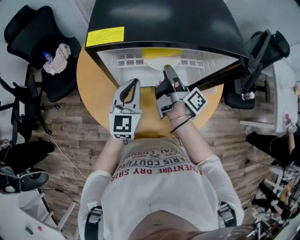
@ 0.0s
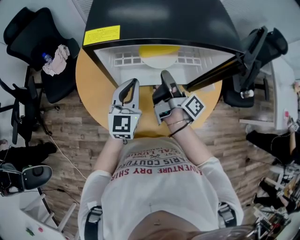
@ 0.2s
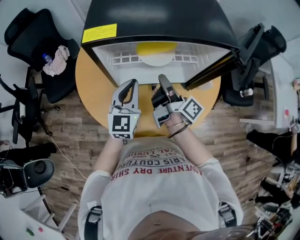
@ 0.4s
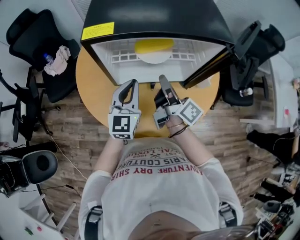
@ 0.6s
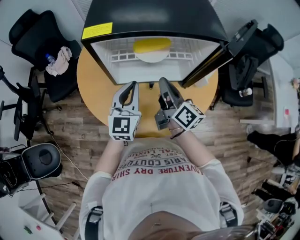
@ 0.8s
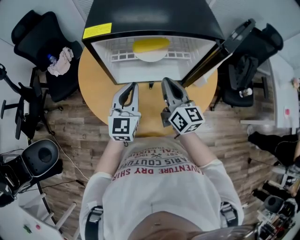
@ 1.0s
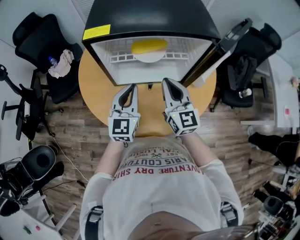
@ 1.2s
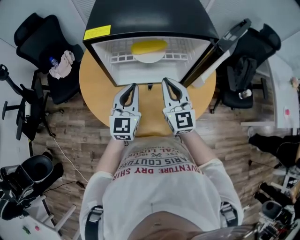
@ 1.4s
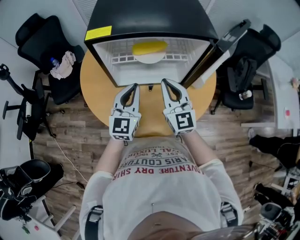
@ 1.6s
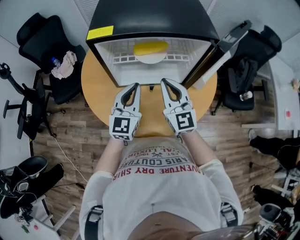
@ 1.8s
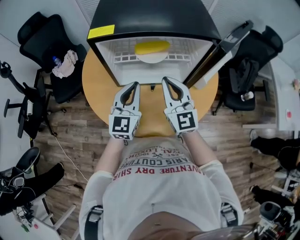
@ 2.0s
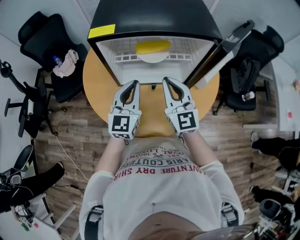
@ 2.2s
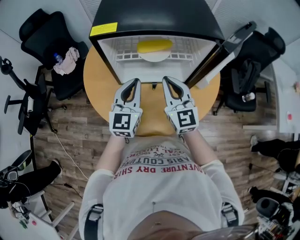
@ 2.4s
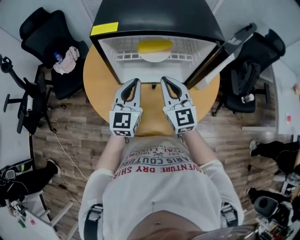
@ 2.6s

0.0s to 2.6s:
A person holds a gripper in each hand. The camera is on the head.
0.0s to 1.2s: The left gripper ends up some 10 cm from where it was.

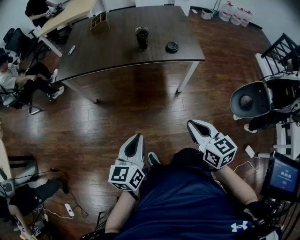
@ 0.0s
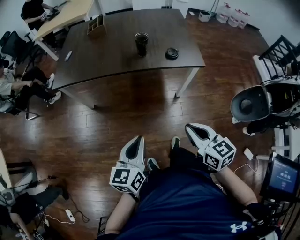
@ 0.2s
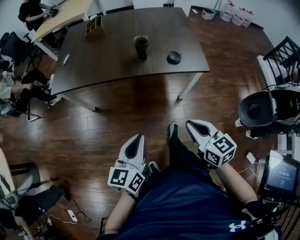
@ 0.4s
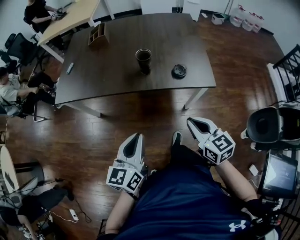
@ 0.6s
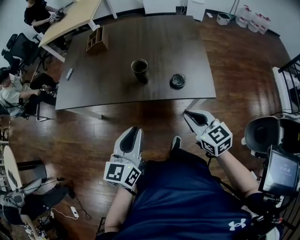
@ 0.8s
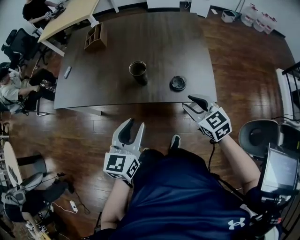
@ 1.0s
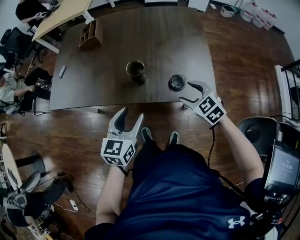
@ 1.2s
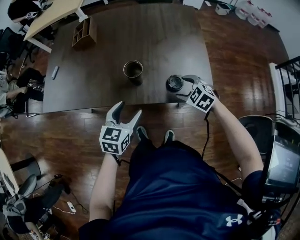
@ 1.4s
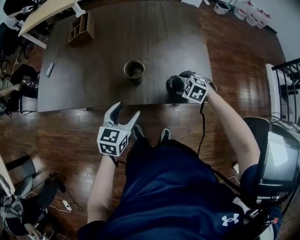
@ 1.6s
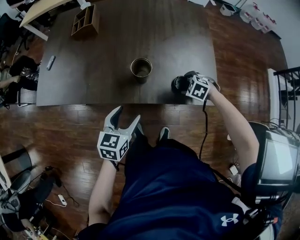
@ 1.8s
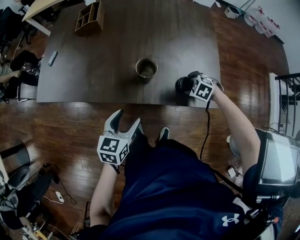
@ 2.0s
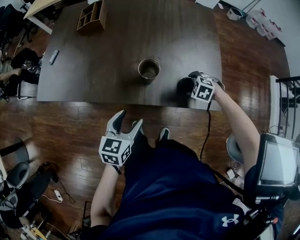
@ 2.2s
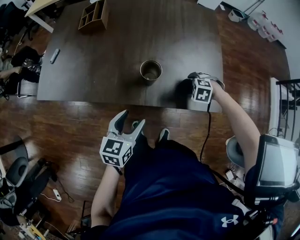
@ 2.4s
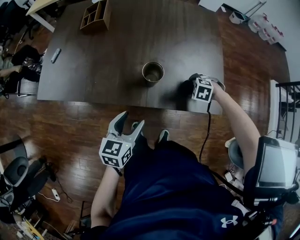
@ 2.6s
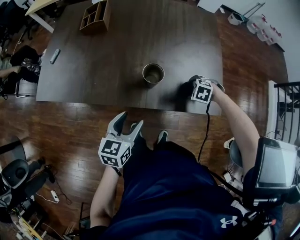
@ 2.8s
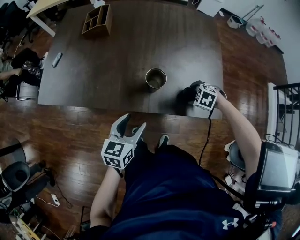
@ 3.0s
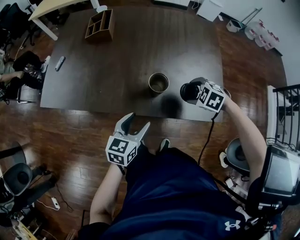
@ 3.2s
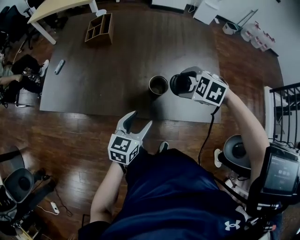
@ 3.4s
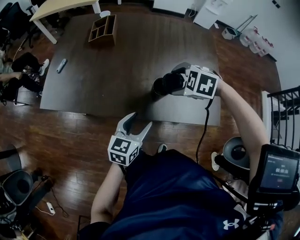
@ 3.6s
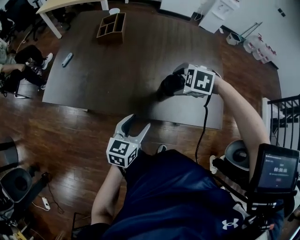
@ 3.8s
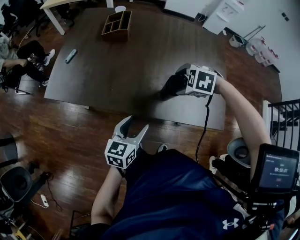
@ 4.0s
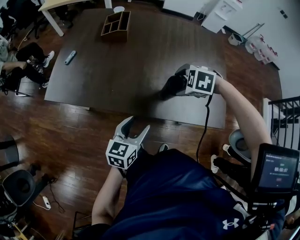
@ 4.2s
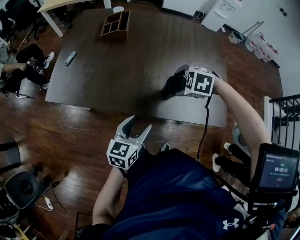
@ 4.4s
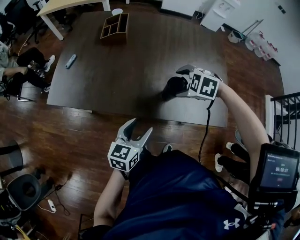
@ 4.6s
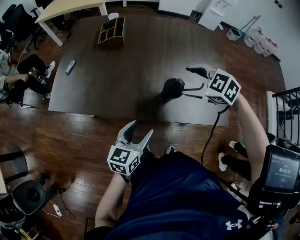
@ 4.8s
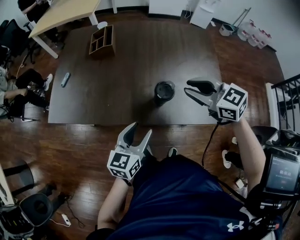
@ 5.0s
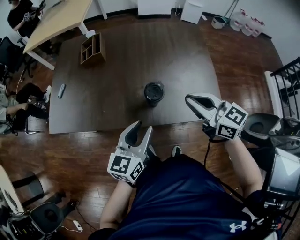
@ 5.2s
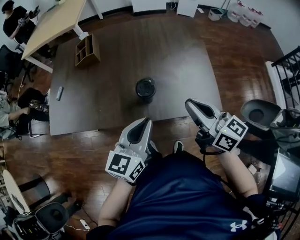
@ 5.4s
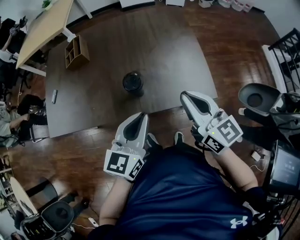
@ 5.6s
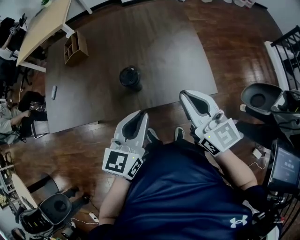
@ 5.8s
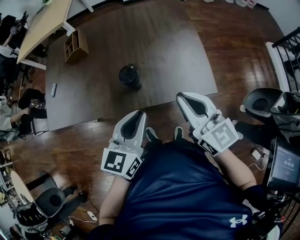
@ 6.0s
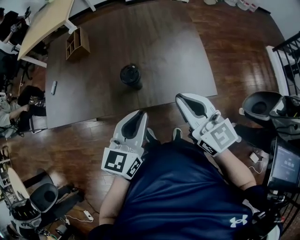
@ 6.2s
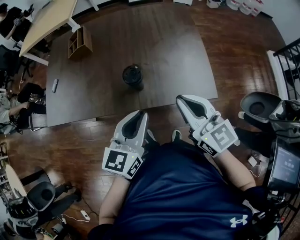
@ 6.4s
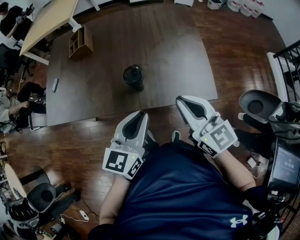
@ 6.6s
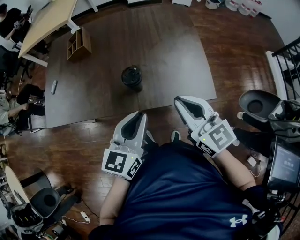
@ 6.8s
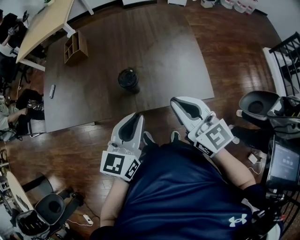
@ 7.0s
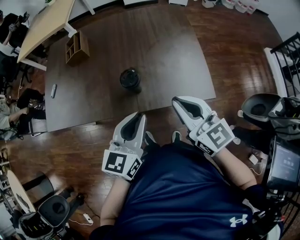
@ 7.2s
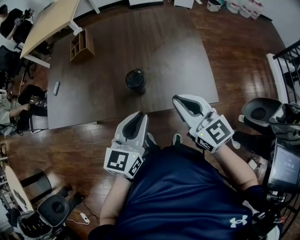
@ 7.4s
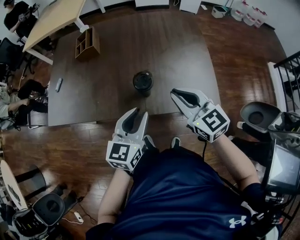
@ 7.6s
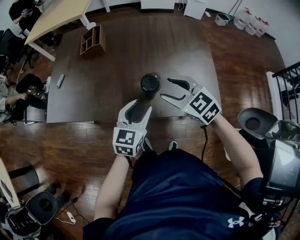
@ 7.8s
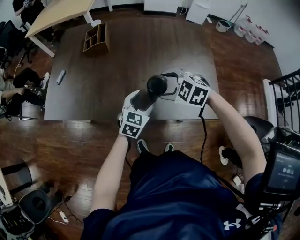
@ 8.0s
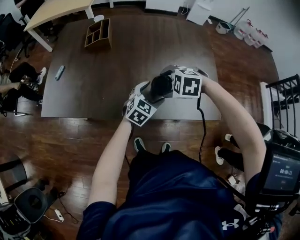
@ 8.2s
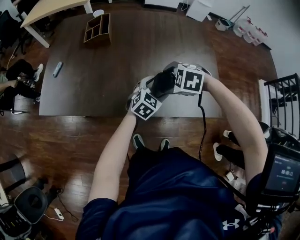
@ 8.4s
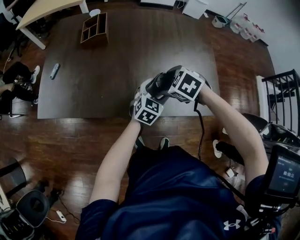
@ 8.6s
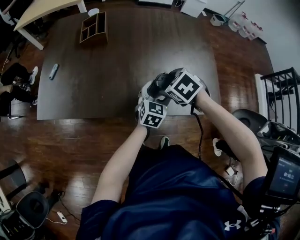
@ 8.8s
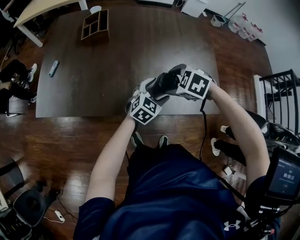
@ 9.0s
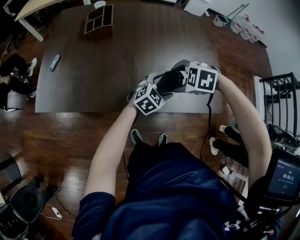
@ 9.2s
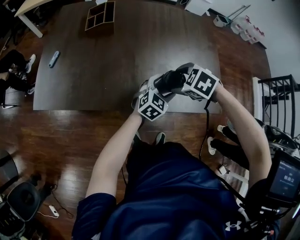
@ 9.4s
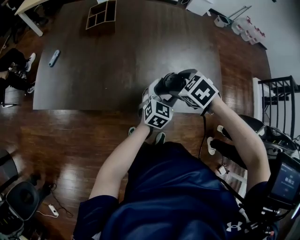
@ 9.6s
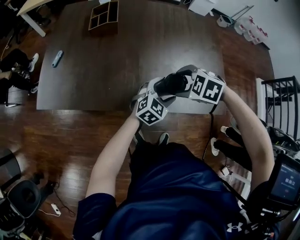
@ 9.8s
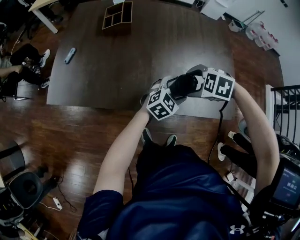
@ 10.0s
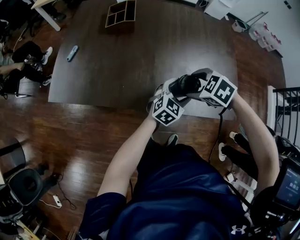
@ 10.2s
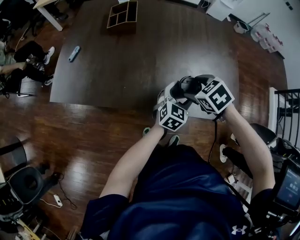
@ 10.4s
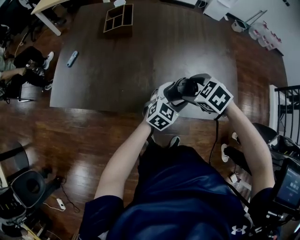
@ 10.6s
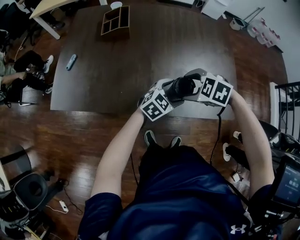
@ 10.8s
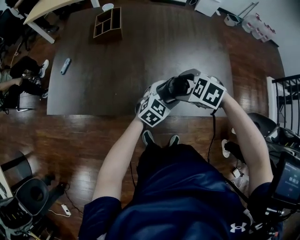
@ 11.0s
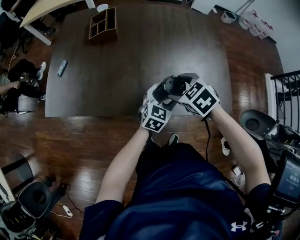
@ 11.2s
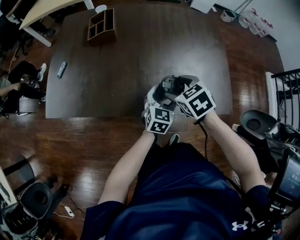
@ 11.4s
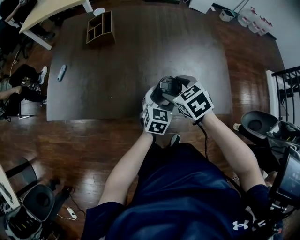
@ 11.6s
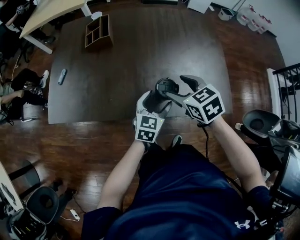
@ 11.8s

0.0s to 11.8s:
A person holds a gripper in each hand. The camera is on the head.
0.0s to 1.4s: The pair of grippers is taken forward, roughly 50 cm. The right gripper points its fingers about 30 degrees further downward, and opens; the left gripper rotates some 20 degrees, and opens its fingers.
1.4s to 3.0s: The right gripper shifts about 5 cm downward, and changes its angle by roughly 30 degrees. Meanwhile the left gripper shifts by roughly 5 cm.
3.0s to 4.4s: The right gripper ends up about 25 cm from where it was, while the left gripper ends up about 5 cm from where it was.
4.4s to 6.0s: The left gripper changes place by some 20 cm, and closes its fingers. Meanwhile the right gripper changes place by approximately 25 cm, points its fingers approximately 70 degrees further upward, and closes up.
6.0s to 7.4s: The grippers stay close to where they were, moving slightly.
7.4s to 8.8s: The left gripper travels downward and forward by about 25 cm, and opens; the right gripper travels downward, forward and to the left by approximately 25 cm, angles its fingers downward, by approximately 60 degrees, and opens.
10.4s to 11.8s: The right gripper swivels some 30 degrees.

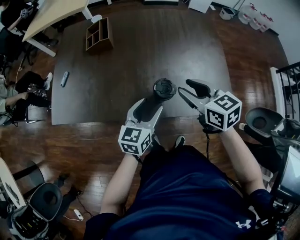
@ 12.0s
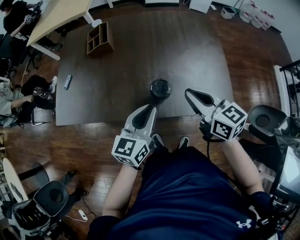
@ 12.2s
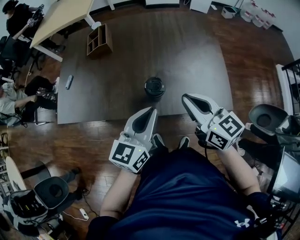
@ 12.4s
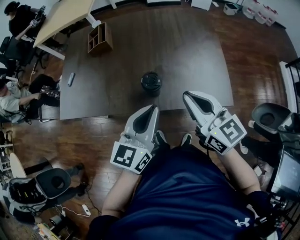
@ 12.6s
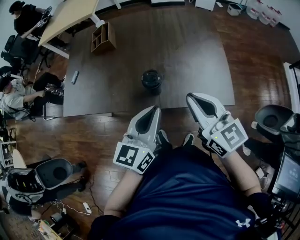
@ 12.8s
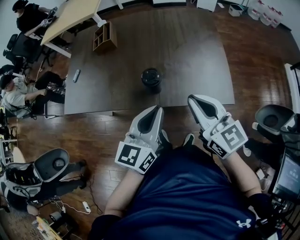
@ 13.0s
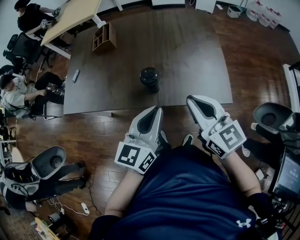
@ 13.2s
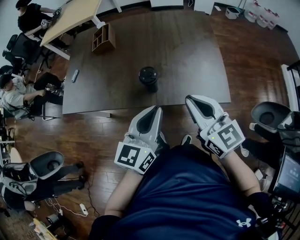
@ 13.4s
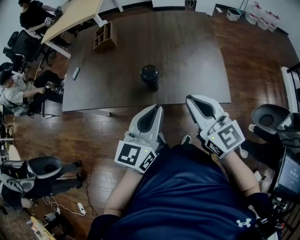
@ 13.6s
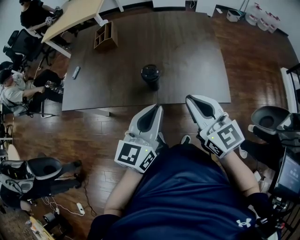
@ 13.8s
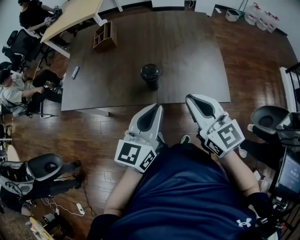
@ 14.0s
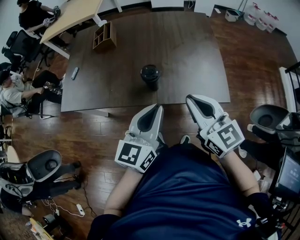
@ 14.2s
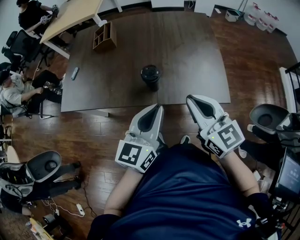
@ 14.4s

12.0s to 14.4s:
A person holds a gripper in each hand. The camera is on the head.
12.0s to 13.2s: The left gripper moves upward, backward and to the right, roughly 20 cm, and closes its fingers. The right gripper travels backward, upward and to the right by some 20 cm, rotates roughly 20 degrees, and closes.
13.2s to 14.4s: The grippers move only a little.

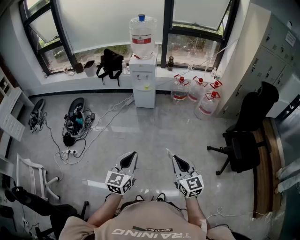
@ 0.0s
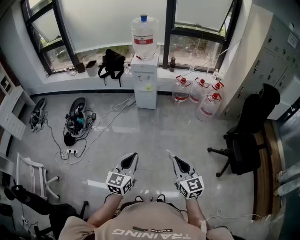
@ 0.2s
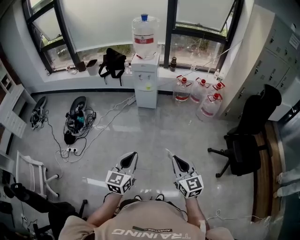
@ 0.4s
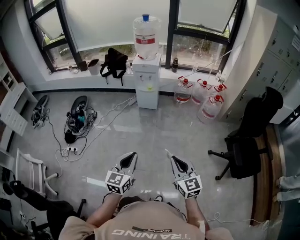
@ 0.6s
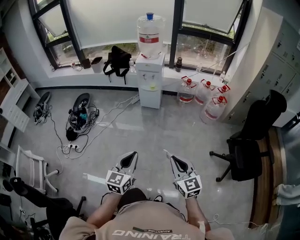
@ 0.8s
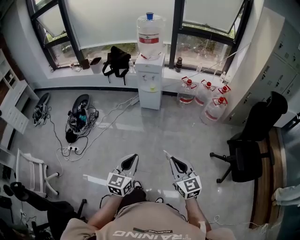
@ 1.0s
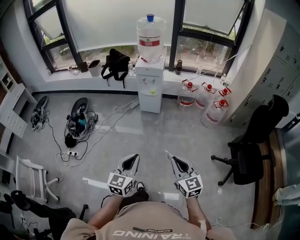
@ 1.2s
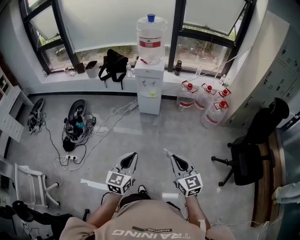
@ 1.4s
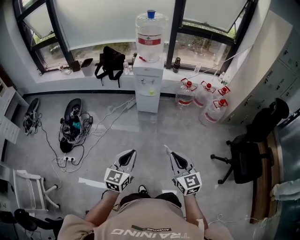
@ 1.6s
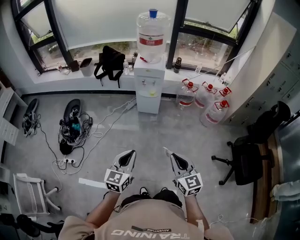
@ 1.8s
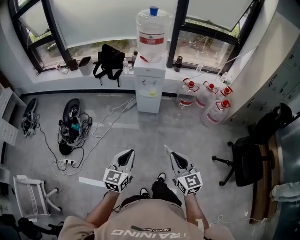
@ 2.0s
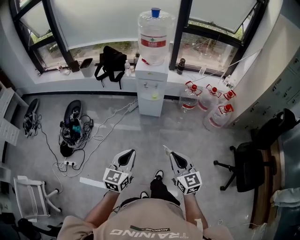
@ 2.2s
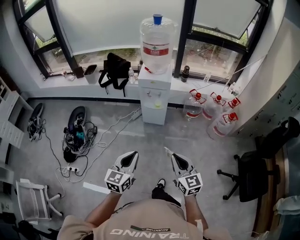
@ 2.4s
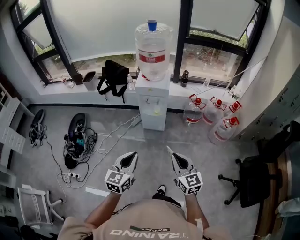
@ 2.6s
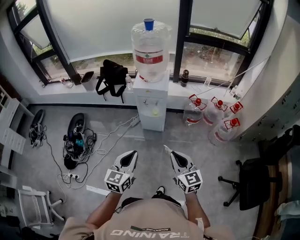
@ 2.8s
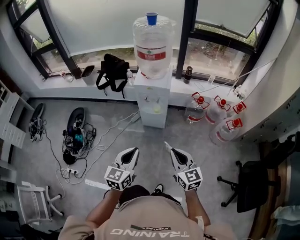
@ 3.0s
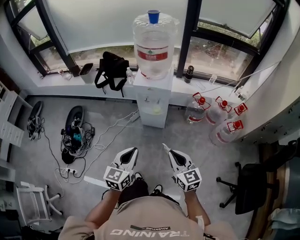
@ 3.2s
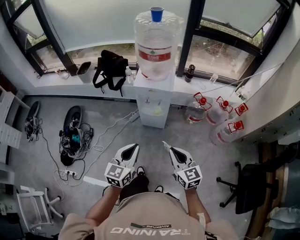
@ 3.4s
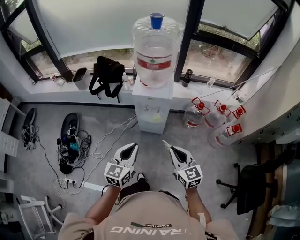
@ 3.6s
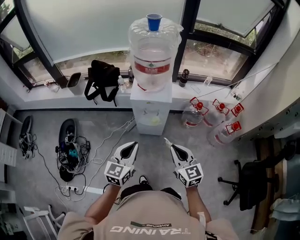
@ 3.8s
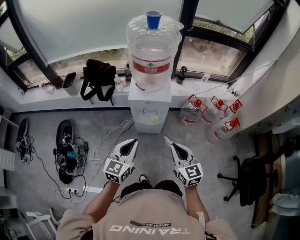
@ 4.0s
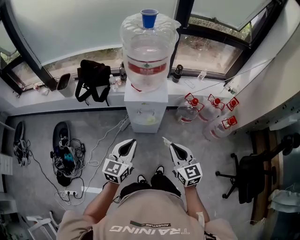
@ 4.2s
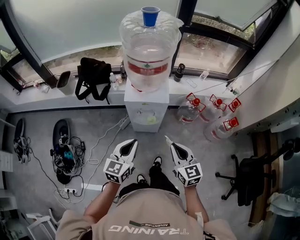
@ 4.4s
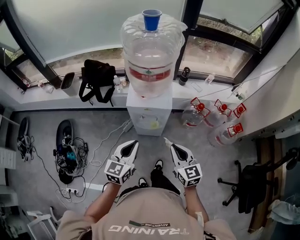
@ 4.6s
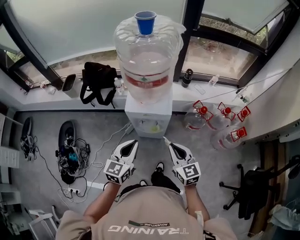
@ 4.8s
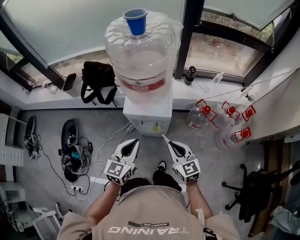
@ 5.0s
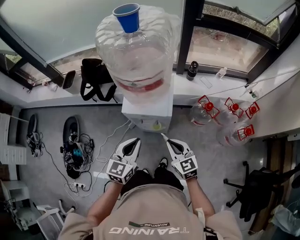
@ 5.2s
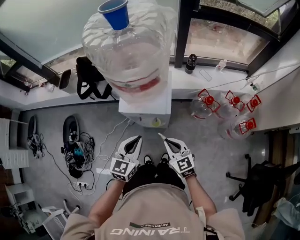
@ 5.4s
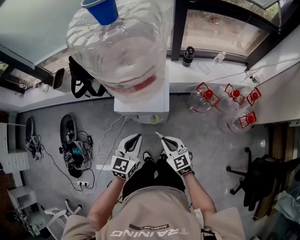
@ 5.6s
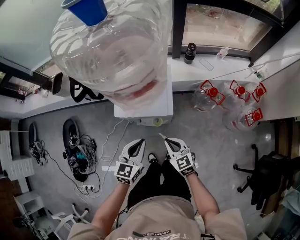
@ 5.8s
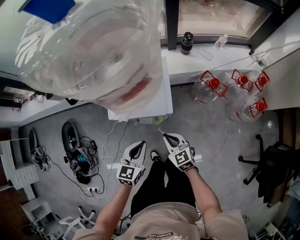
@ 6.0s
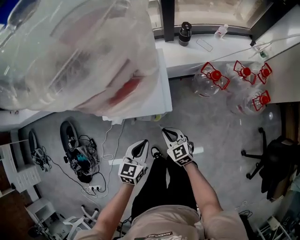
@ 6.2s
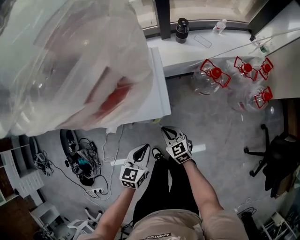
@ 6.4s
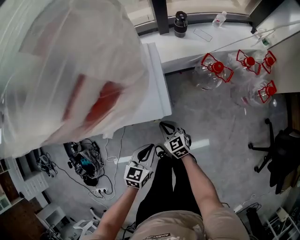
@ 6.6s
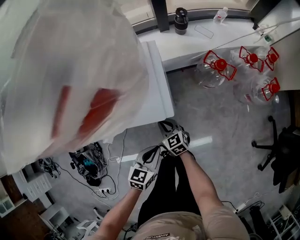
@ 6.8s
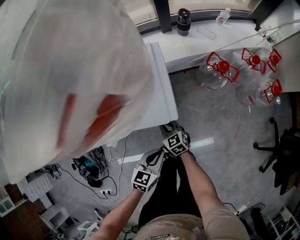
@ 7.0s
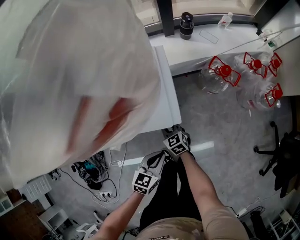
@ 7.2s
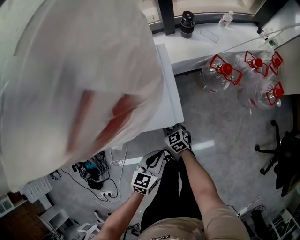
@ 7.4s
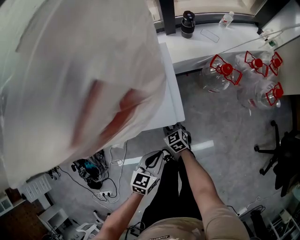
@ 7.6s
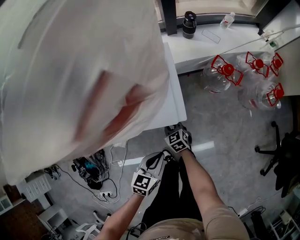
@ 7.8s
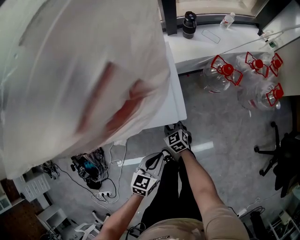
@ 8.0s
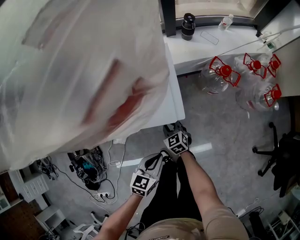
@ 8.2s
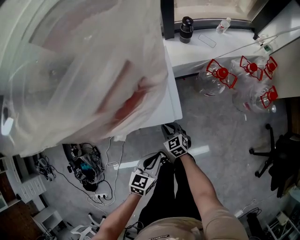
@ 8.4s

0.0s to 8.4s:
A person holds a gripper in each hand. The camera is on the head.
0.0s to 1.4s: The two grippers go approximately 15 cm forward.
1.4s to 2.8s: Both grippers move forward, some 30 cm.
2.8s to 4.2s: Both grippers move forward, roughly 25 cm.
4.2s to 5.6s: The right gripper is displaced forward and downward by approximately 25 cm. The left gripper shifts some 20 cm forward, downward and to the right.
5.6s to 7.0s: The right gripper shifts roughly 30 cm downward and forward. Meanwhile the left gripper goes about 25 cm downward, and turns by about 30 degrees.
7.0s to 8.4s: The grippers move only a little.
